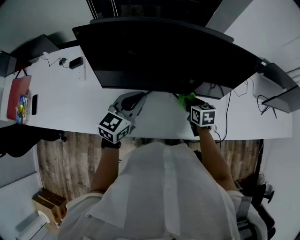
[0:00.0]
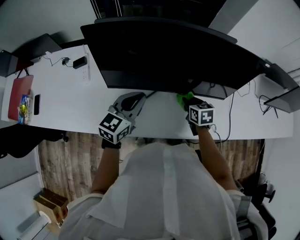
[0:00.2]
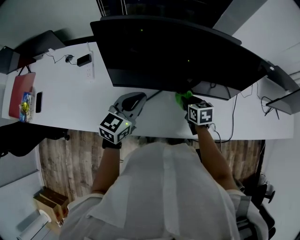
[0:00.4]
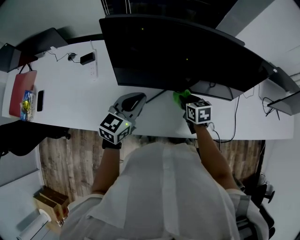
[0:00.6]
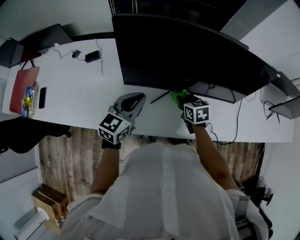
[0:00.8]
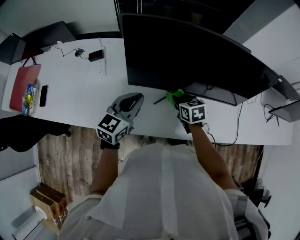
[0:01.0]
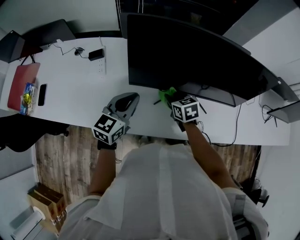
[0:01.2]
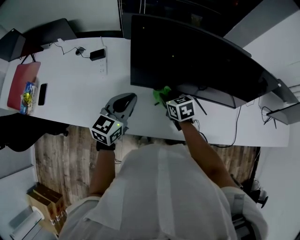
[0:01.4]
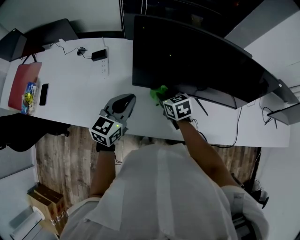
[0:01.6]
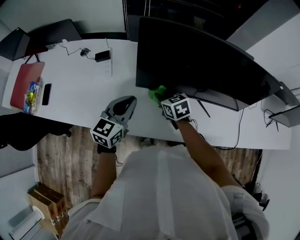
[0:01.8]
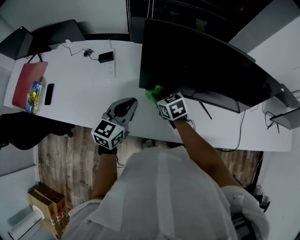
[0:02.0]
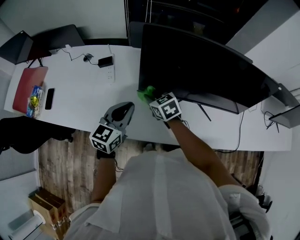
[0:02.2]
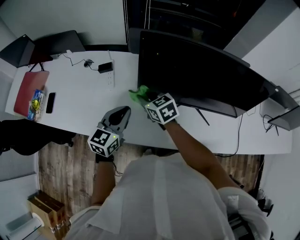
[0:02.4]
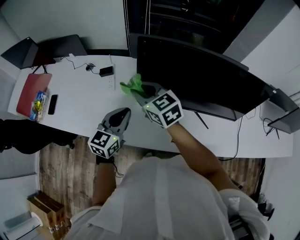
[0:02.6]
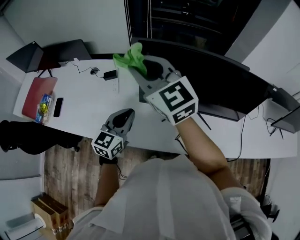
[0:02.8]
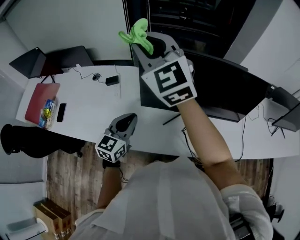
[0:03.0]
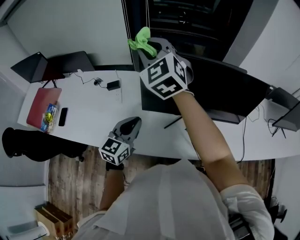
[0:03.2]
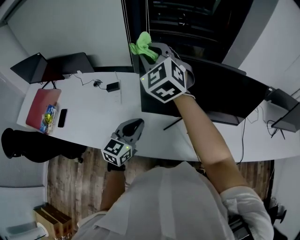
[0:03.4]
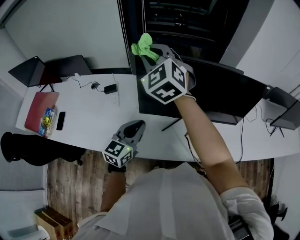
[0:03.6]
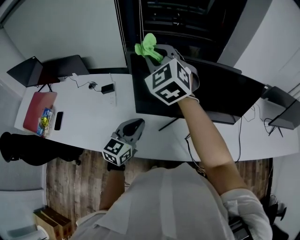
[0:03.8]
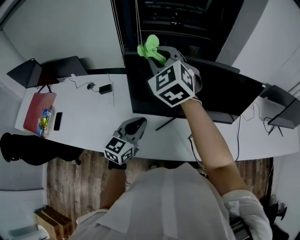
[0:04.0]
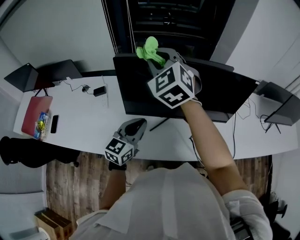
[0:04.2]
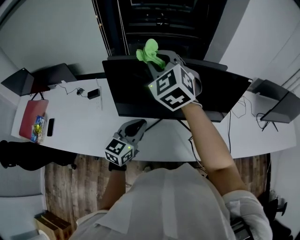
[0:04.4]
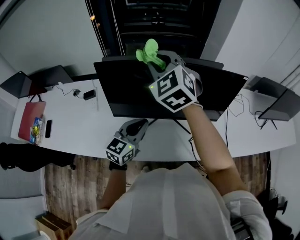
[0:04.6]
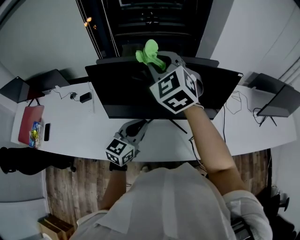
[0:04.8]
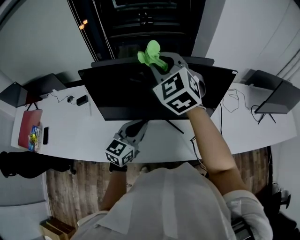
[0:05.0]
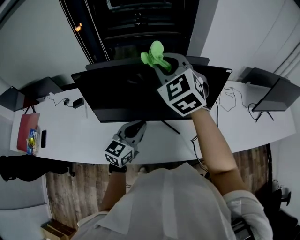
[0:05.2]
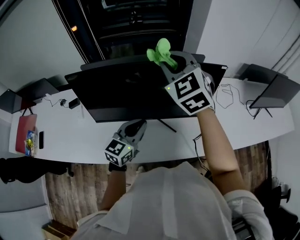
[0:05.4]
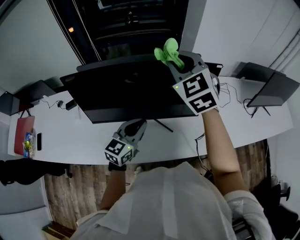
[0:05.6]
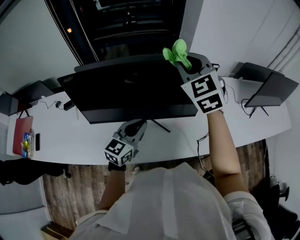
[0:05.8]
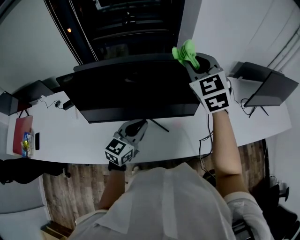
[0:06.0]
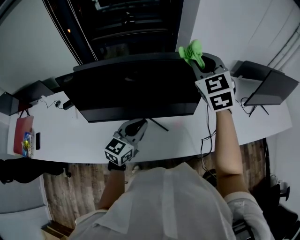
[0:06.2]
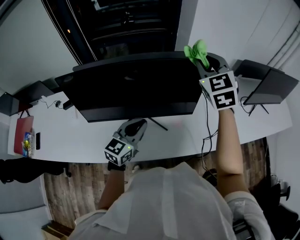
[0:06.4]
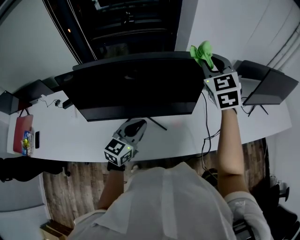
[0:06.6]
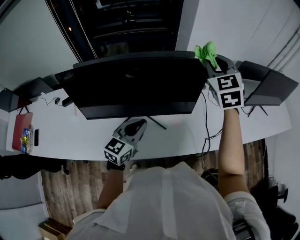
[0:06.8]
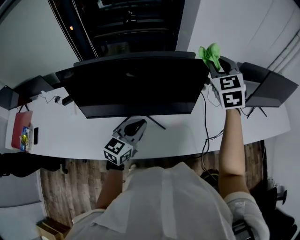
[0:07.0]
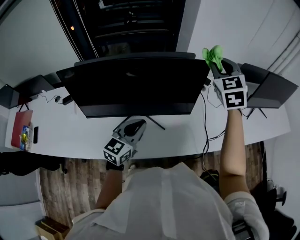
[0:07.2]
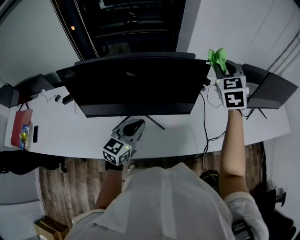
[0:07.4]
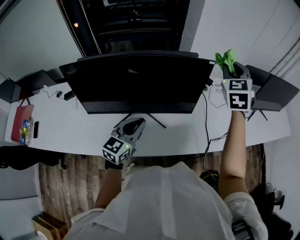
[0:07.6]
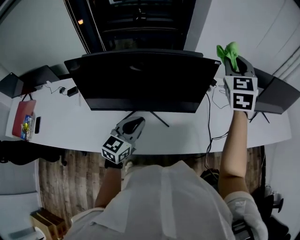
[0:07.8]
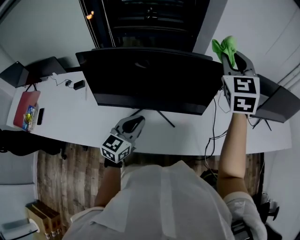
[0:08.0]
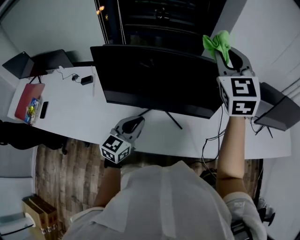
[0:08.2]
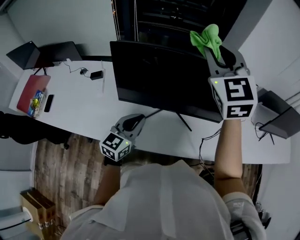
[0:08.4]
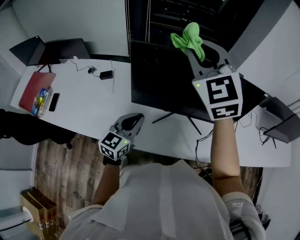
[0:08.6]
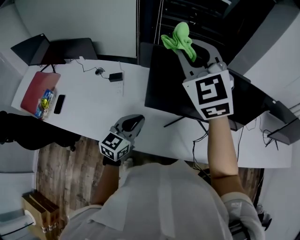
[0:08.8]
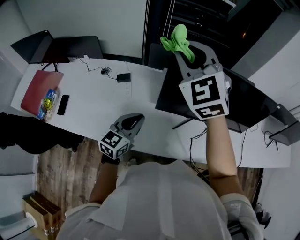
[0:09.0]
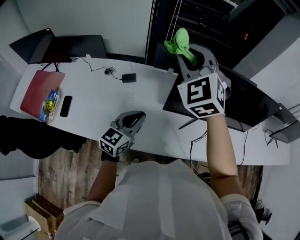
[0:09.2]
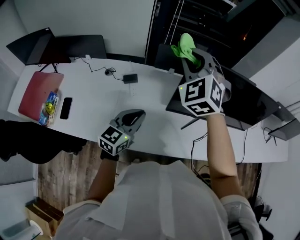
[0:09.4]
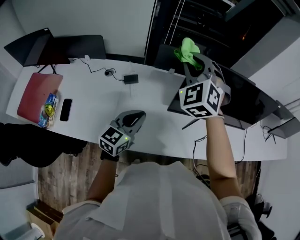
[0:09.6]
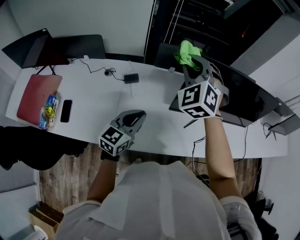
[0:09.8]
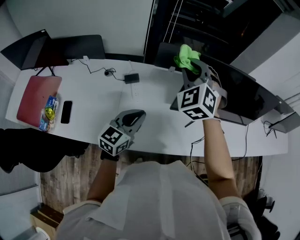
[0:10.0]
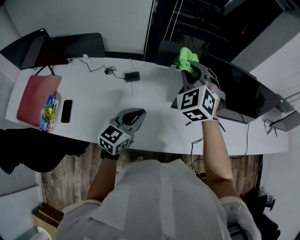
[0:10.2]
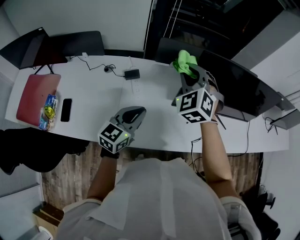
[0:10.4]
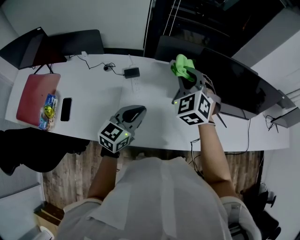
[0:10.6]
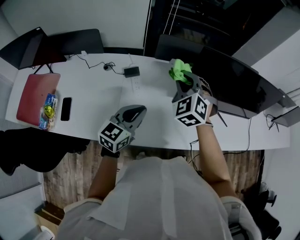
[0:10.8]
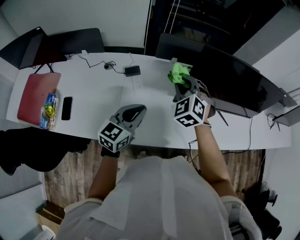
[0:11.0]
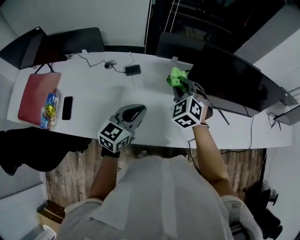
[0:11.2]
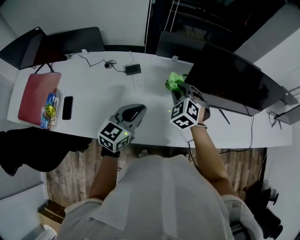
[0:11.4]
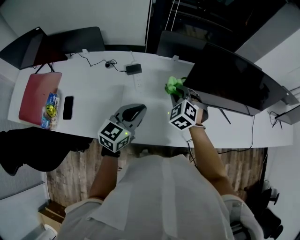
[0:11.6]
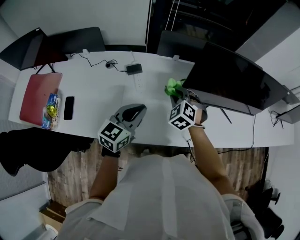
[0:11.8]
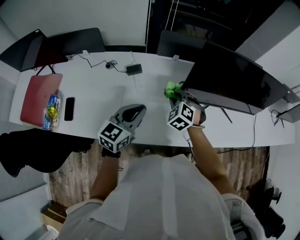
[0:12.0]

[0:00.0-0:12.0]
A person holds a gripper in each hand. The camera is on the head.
0:00.0 to 0:01.6: The left gripper travels to the left by roughly 20 cm. Meanwhile the right gripper travels to the left by approximately 30 cm, and swivels about 20 degrees.
0:01.6 to 0:03.0: The right gripper travels upward by some 40 cm, and tips its fingers upward by roughly 50 degrees; the left gripper shifts by some 5 cm.
0:03.0 to 0:04.4: Both grippers travel together to the right, roughly 15 cm. The right gripper rotates some 20 degrees.
0:04.4 to 0:06.0: The left gripper is displaced to the right by approximately 15 cm, while the right gripper shifts roughly 30 cm to the right.
0:06.0 to 0:07.6: The right gripper goes some 15 cm to the right, and swivels roughly 20 degrees.
0:07.6 to 0:09.0: The left gripper shifts by some 40 cm, while the right gripper ends up roughly 70 cm from where it was, and rotates roughly 40 degrees.
0:09.0 to 0:10.4: The left gripper goes approximately 10 cm to the left, while the right gripper goes about 15 cm downward, and changes its angle by approximately 30 degrees.
0:10.4 to 0:12.0: The right gripper is displaced downward by some 20 cm, and swivels roughly 20 degrees.

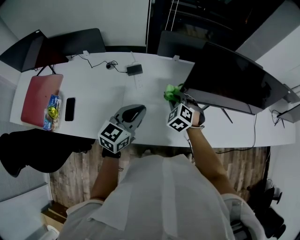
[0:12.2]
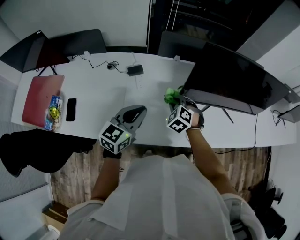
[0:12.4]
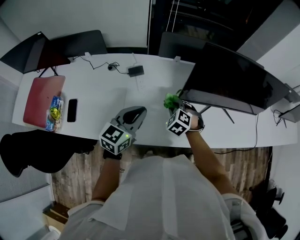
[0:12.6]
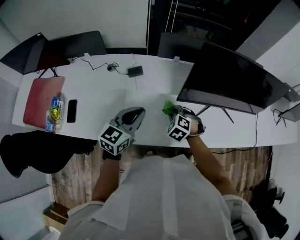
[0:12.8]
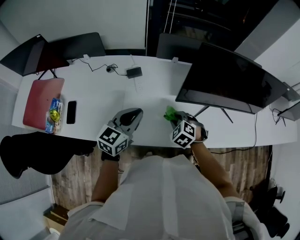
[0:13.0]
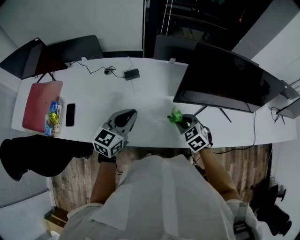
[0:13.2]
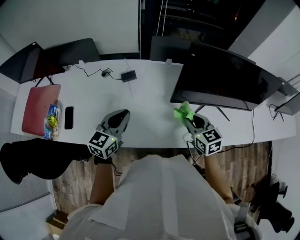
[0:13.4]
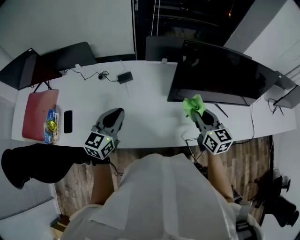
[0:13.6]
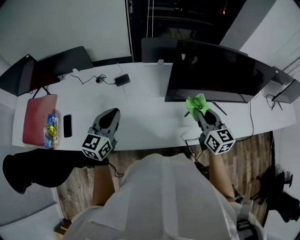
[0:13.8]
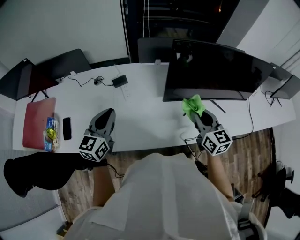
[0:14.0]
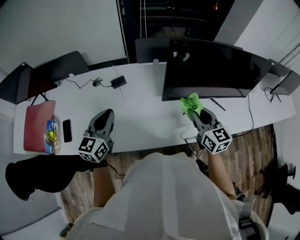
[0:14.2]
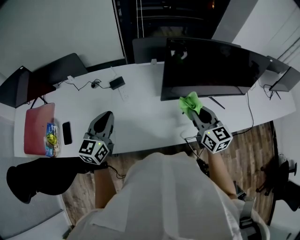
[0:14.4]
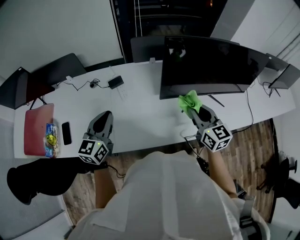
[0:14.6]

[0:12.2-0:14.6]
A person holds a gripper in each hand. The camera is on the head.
0:12.2 to 0:13.4: The right gripper heads to the right, backward and upward, covering some 15 cm, and rotates around the line of its fingers by approximately 40 degrees, clockwise from behind.
0:13.4 to 0:14.6: The right gripper travels upward and to the right by some 10 cm, and turns by approximately 20 degrees.

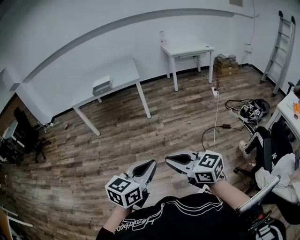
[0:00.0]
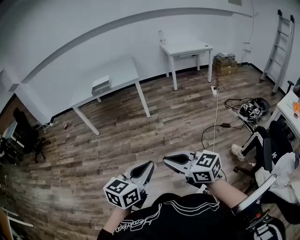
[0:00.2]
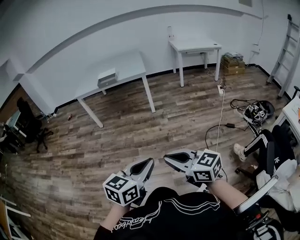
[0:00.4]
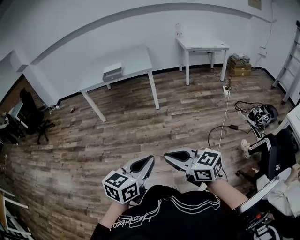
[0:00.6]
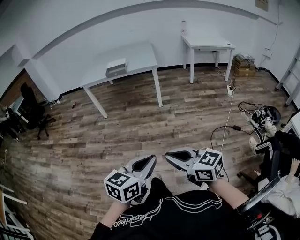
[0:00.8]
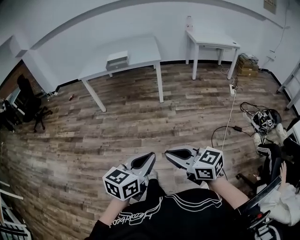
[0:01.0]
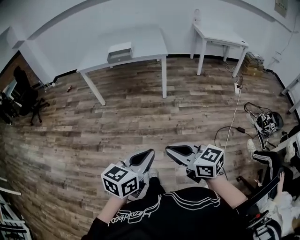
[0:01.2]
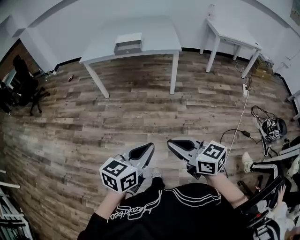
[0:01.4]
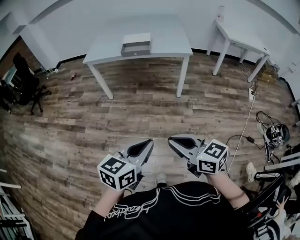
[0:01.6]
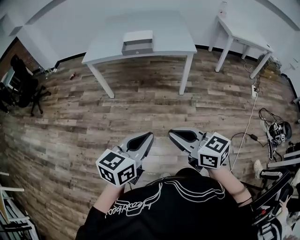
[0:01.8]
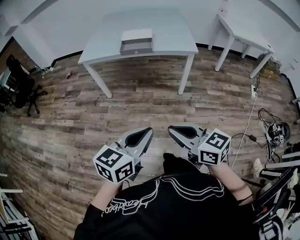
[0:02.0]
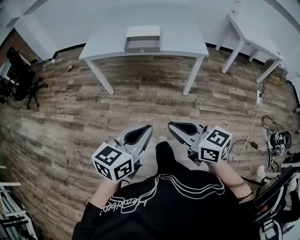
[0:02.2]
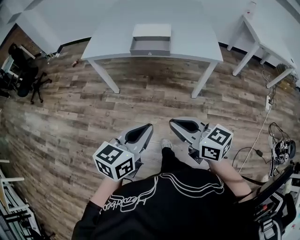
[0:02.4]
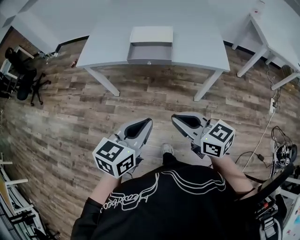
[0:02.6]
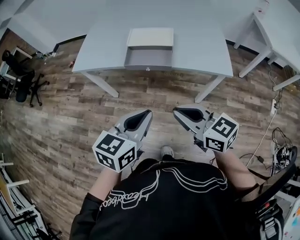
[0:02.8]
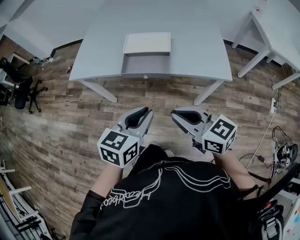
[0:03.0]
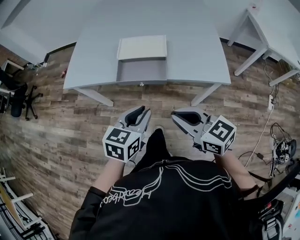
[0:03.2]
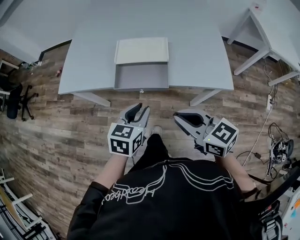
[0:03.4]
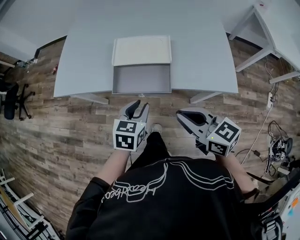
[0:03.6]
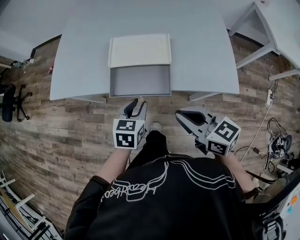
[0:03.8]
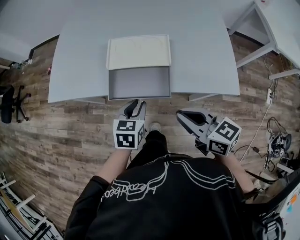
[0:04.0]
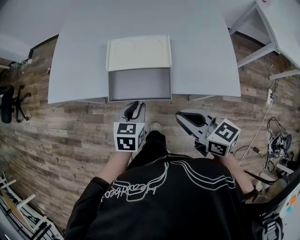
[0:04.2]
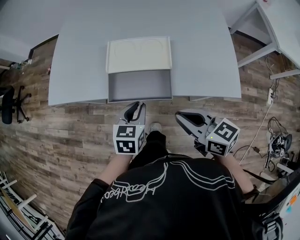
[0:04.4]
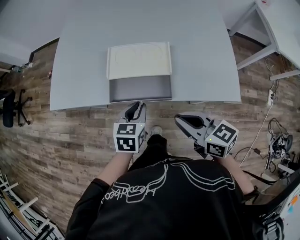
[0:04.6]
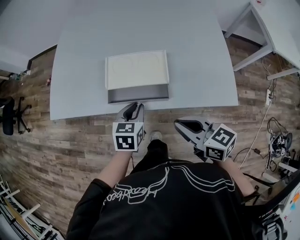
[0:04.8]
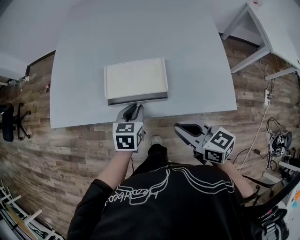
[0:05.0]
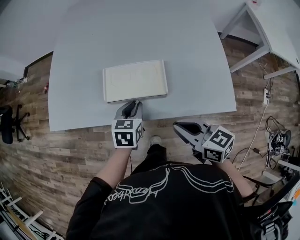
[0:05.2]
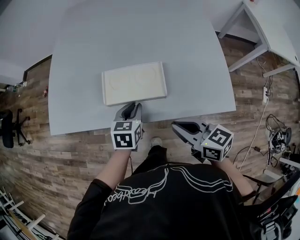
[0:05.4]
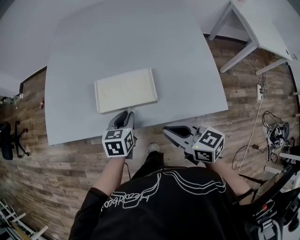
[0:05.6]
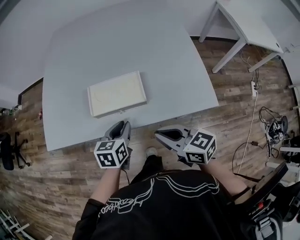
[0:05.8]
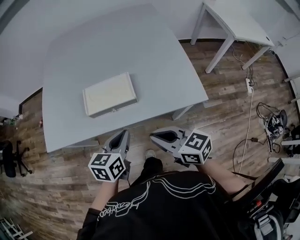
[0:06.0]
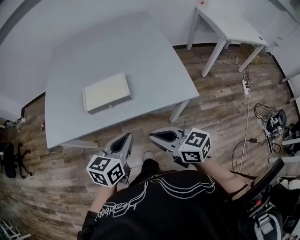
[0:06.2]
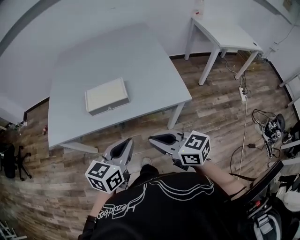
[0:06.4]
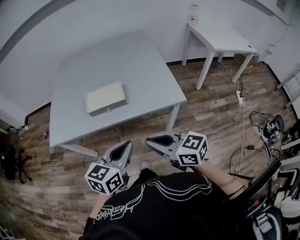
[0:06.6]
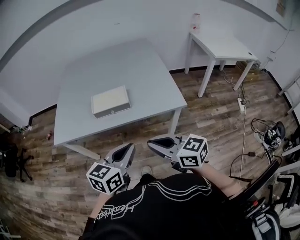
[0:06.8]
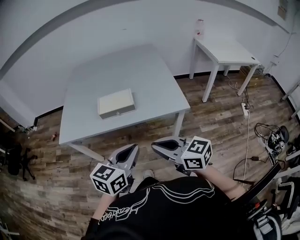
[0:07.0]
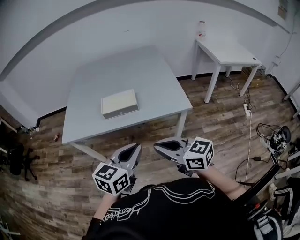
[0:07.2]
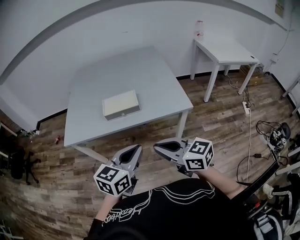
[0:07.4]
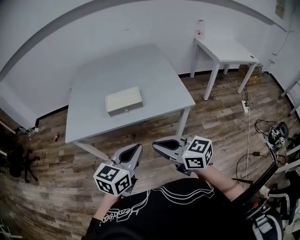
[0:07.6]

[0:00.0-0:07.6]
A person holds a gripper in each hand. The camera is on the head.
0:00.0 to 0:01.6: The pair of grippers is taken forward and to the left, about 40 cm.
0:01.6 to 0:03.0: Both grippers are carried forward, about 50 cm.
0:03.0 to 0:04.6: Both grippers travel together forward and downward, roughly 20 cm.
0:04.6 to 0:06.0: The left gripper is displaced upward by approximately 10 cm, and reaches approximately 10 cm forward, then returns.
0:06.0 to 0:07.6: The two grippers go roughly 25 cm backward and upward. The left gripper turns by some 20 degrees.

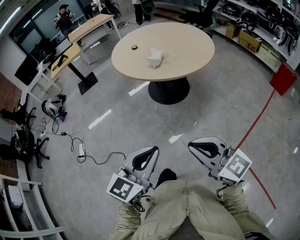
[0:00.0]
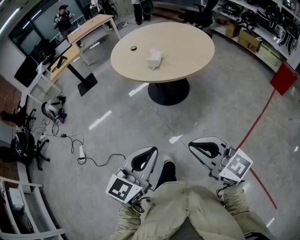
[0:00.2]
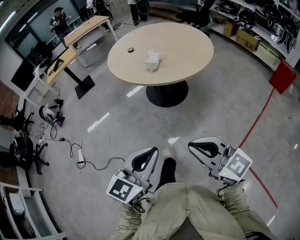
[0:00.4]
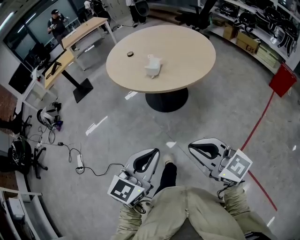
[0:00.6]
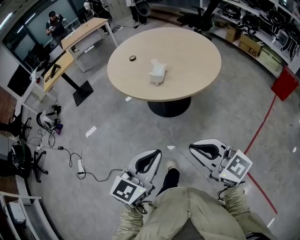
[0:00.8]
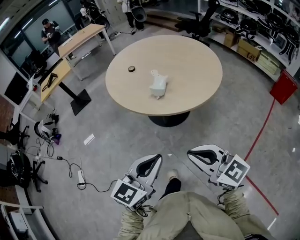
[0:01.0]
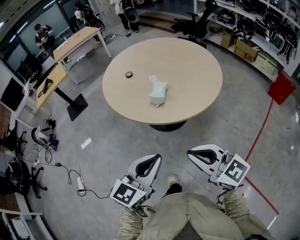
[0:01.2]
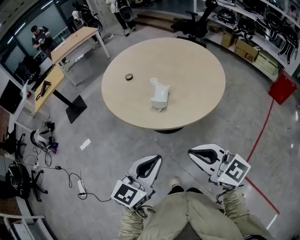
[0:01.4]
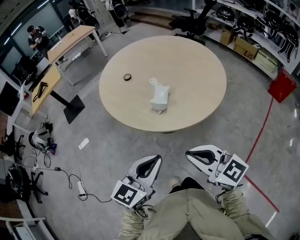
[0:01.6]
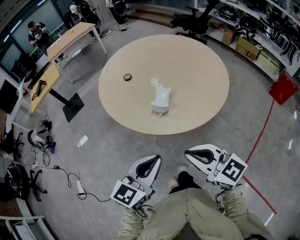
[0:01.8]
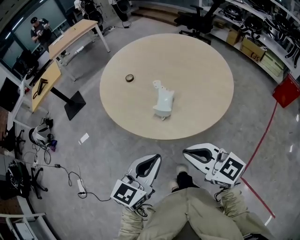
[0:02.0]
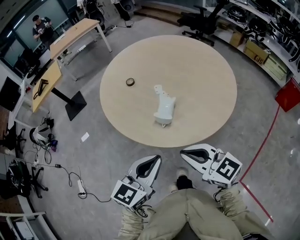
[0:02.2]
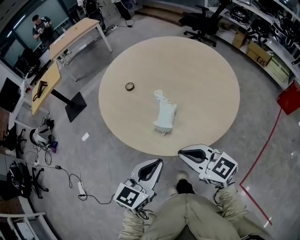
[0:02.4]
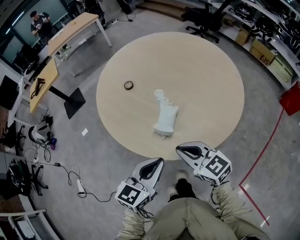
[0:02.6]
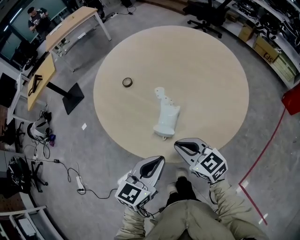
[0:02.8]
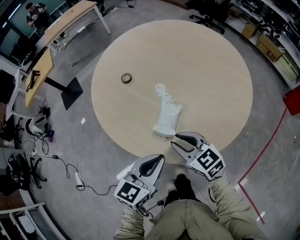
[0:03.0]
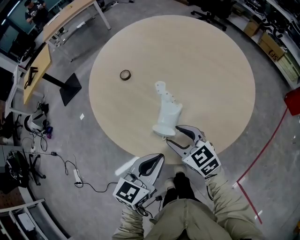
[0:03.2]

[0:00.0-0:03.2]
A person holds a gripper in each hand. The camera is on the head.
0:00.0 to 0:01.6: The grippers both shift forward by some 35 cm.
0:01.6 to 0:03.2: The grippers both shift forward and downward by about 30 cm. The right gripper opens its fingers.
